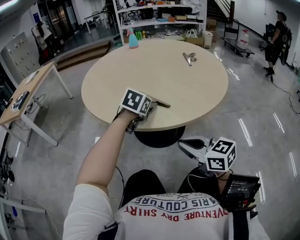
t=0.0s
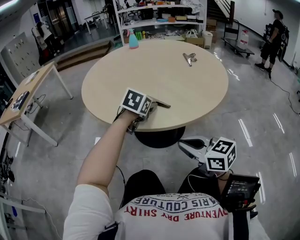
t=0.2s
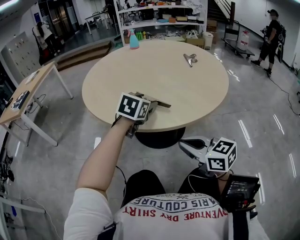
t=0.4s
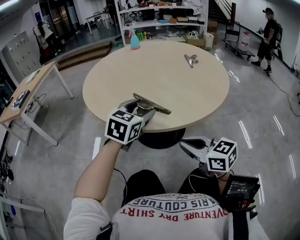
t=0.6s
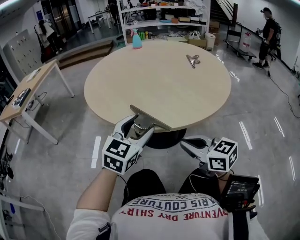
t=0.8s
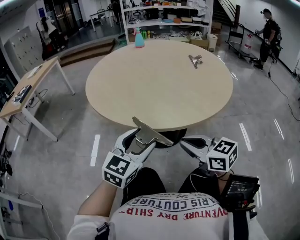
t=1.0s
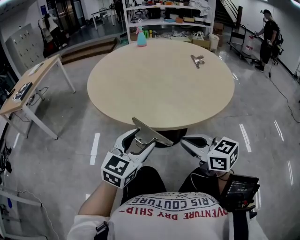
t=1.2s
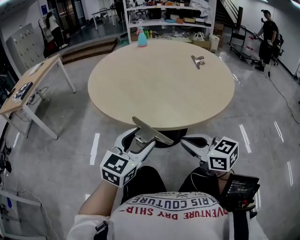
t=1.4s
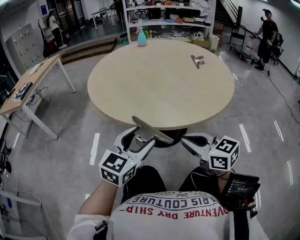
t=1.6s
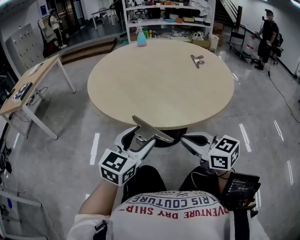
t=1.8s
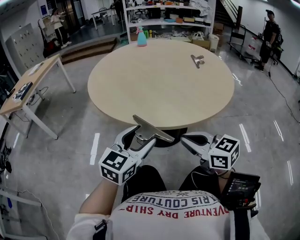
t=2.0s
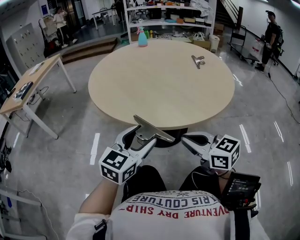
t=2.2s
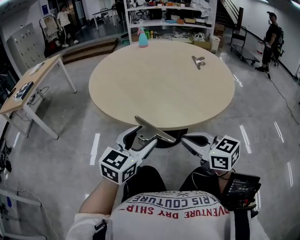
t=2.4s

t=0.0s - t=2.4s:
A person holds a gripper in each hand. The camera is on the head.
t=0.0s - t=1.2s: The left gripper is displaced backward by about 20 cm, and turns by some 30 degrees.
t=1.2s - t=2.4s: The grippers move only a little.

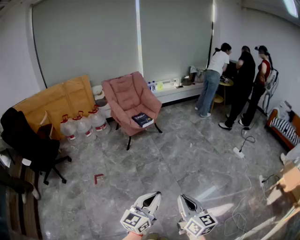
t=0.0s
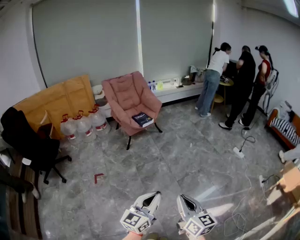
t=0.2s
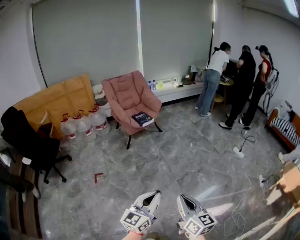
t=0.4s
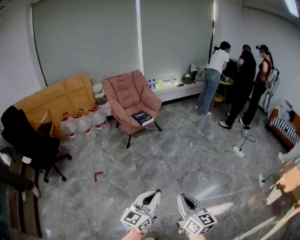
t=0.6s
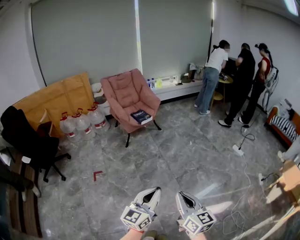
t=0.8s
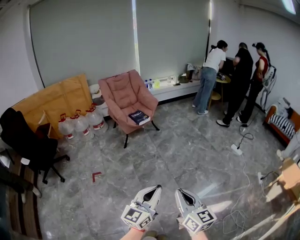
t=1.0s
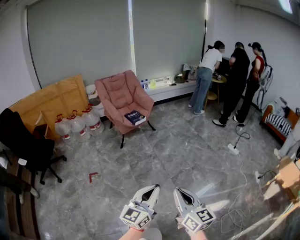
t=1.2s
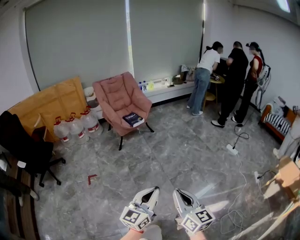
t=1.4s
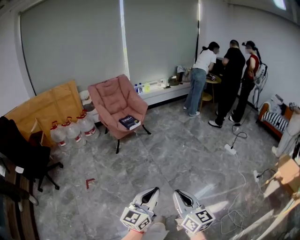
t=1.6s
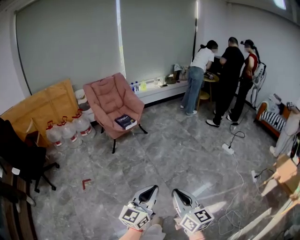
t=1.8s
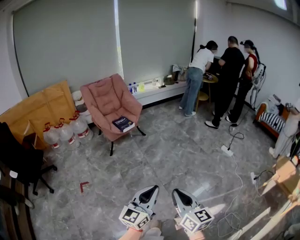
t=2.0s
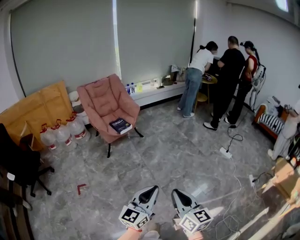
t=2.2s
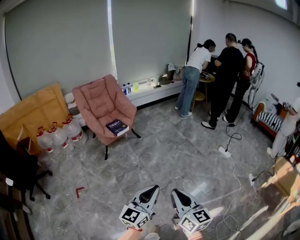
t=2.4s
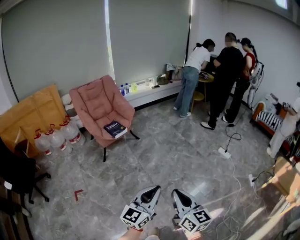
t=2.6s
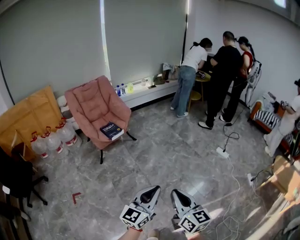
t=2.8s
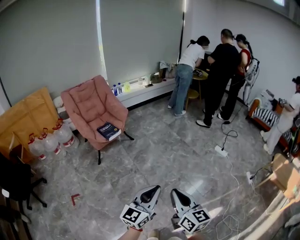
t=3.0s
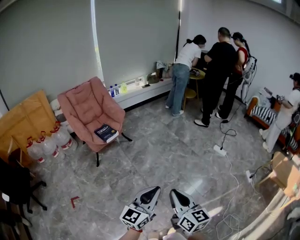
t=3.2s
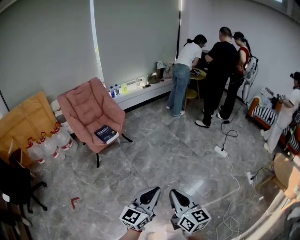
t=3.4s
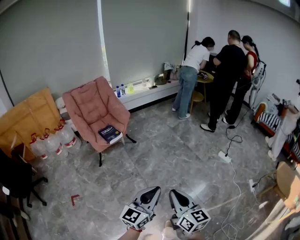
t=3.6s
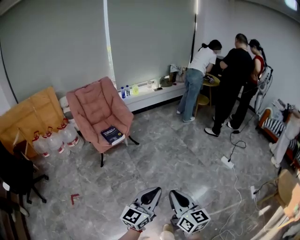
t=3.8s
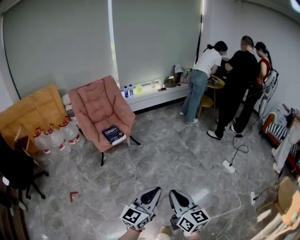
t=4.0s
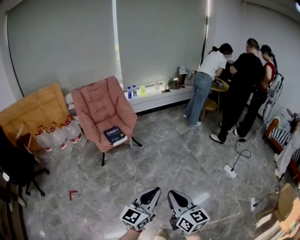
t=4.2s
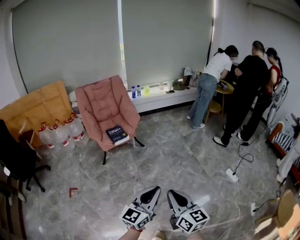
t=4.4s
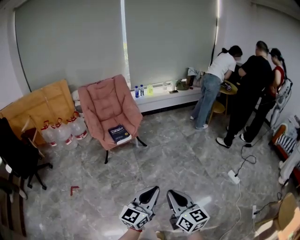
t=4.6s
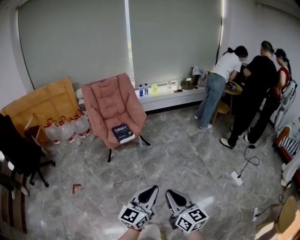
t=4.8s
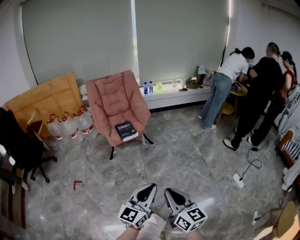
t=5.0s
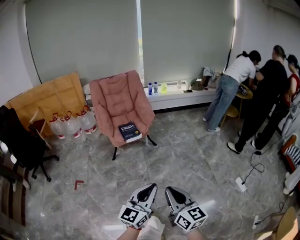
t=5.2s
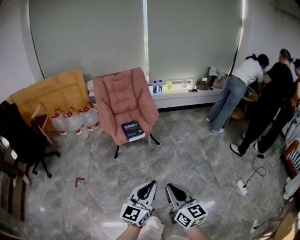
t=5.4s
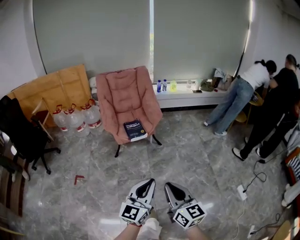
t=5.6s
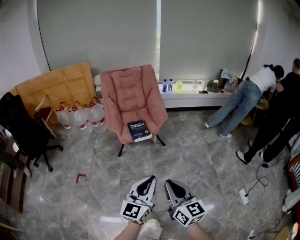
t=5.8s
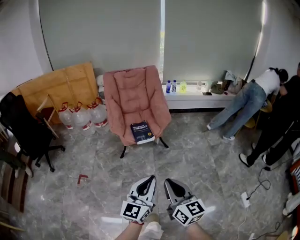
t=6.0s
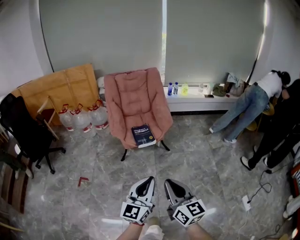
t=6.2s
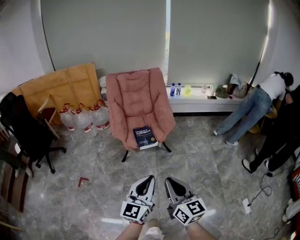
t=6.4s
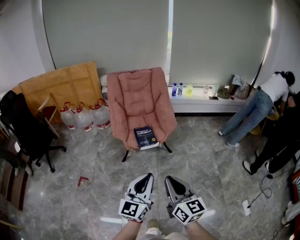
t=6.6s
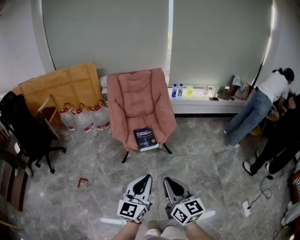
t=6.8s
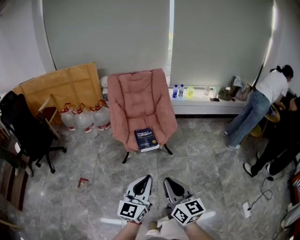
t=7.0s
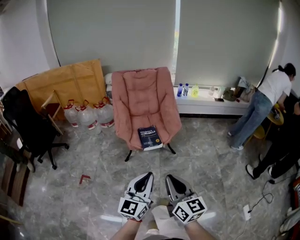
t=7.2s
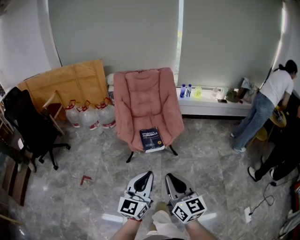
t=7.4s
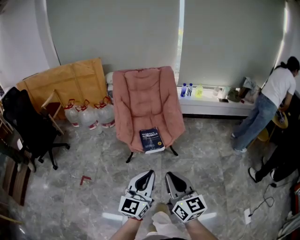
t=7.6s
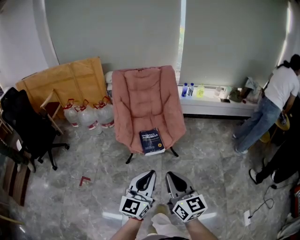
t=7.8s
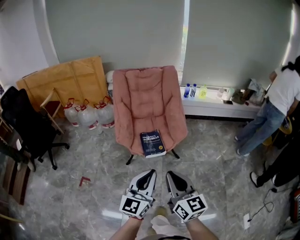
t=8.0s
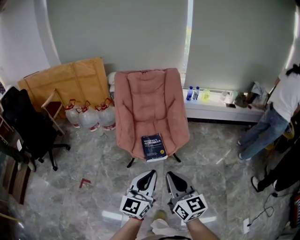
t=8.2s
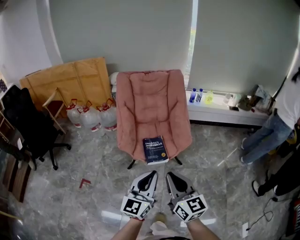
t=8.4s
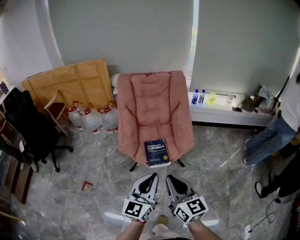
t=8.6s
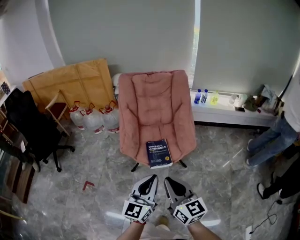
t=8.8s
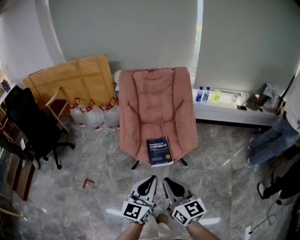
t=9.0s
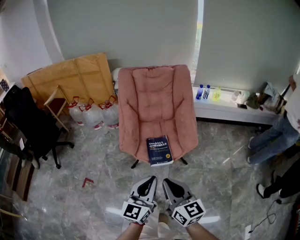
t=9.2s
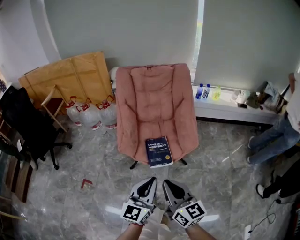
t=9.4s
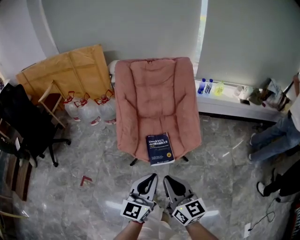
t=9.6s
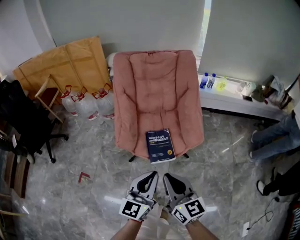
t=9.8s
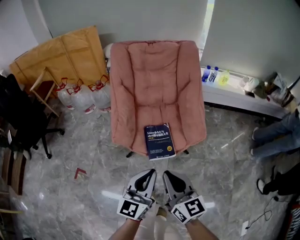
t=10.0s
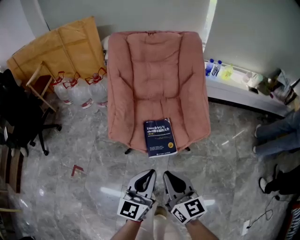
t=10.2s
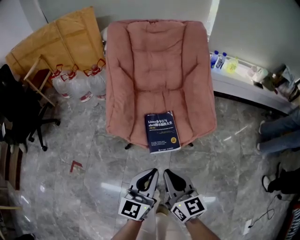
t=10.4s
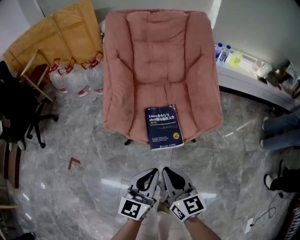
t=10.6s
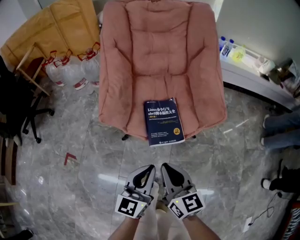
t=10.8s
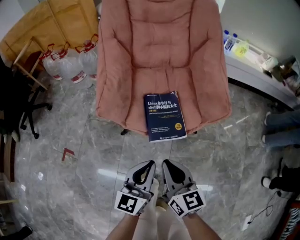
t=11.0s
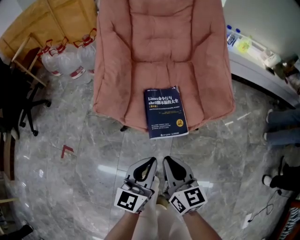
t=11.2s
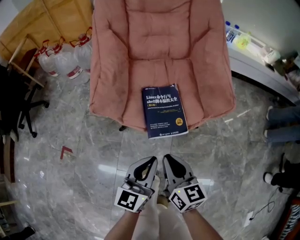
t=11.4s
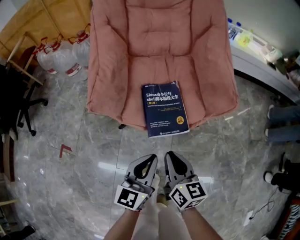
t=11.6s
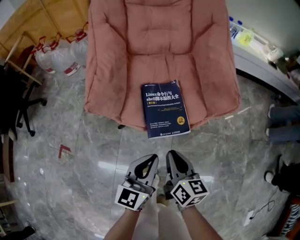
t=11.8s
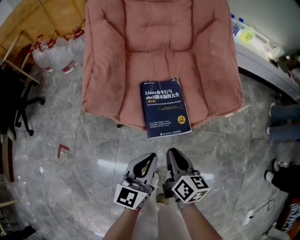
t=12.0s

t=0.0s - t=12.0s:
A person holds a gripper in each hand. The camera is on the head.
t=0.0s - t=1.6s: The grippers both shift to the right by about 5 cm.
t=1.6s - t=3.0s: The grippers both shift forward by approximately 20 cm.
t=3.0s - t=4.4s: The right gripper heads forward, covering about 15 cm, while the left gripper heads forward and to the right, covering some 15 cm.
t=4.4s - t=6.0s: The two grippers go roughly 20 cm forward and to the left. The left gripper turns by some 30 degrees.
t=6.0s - t=7.6s: The grippers both shift forward by approximately 15 cm.
t=7.6s - t=9.0s: The grippers both shift forward by approximately 15 cm.
t=9.0s - t=10.4s: The grippers both shift downward and forward by roughly 20 cm.
t=10.4s - t=12.0s: The grippers both shift downward by approximately 20 cm. The right gripper rotates about 30 degrees.

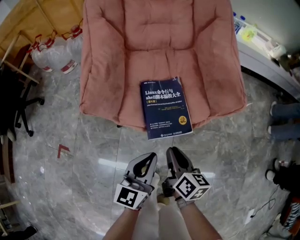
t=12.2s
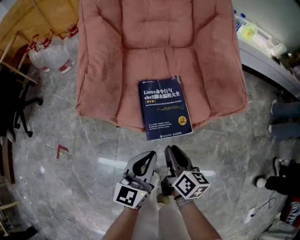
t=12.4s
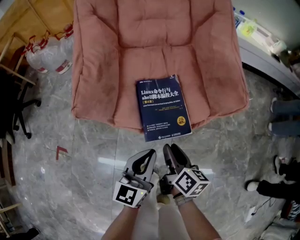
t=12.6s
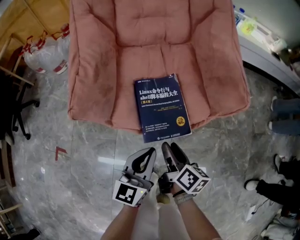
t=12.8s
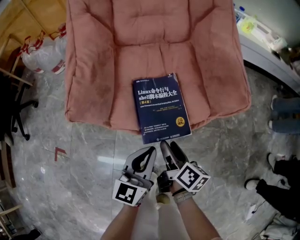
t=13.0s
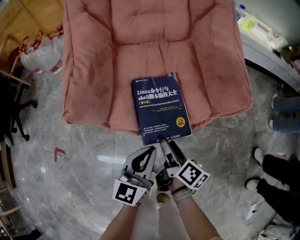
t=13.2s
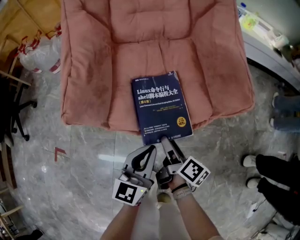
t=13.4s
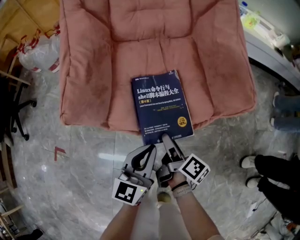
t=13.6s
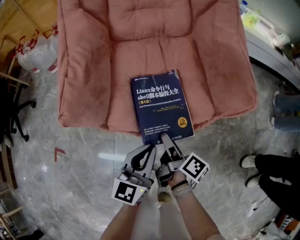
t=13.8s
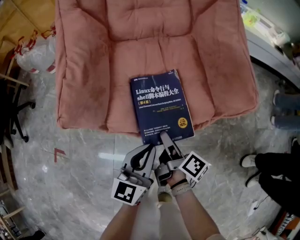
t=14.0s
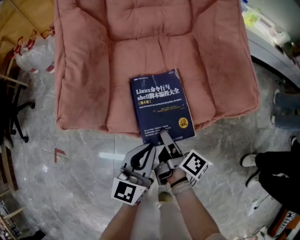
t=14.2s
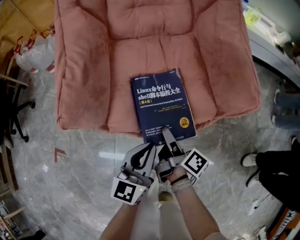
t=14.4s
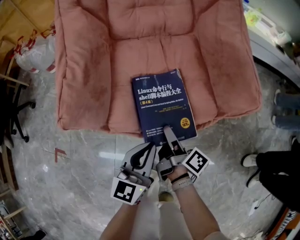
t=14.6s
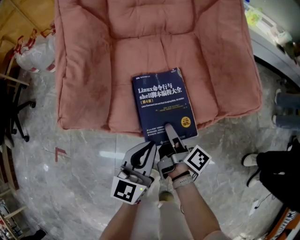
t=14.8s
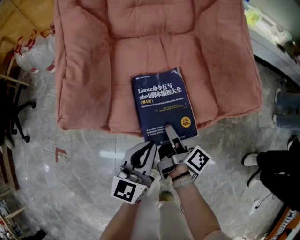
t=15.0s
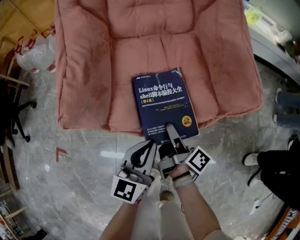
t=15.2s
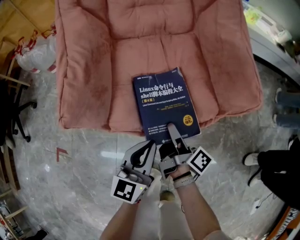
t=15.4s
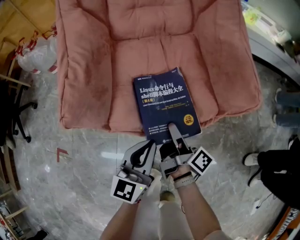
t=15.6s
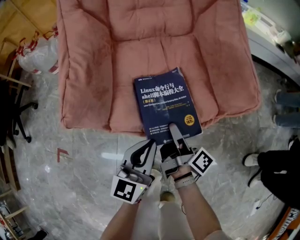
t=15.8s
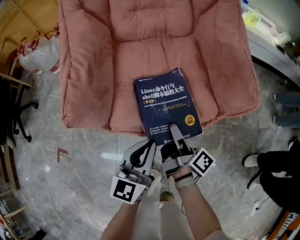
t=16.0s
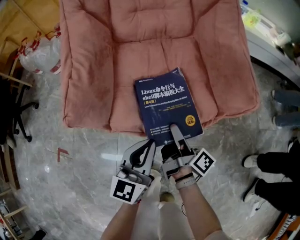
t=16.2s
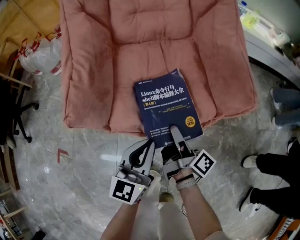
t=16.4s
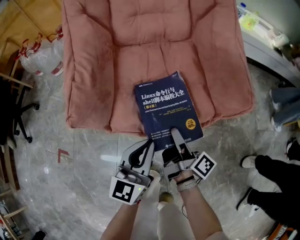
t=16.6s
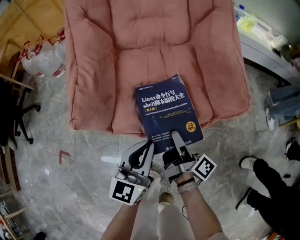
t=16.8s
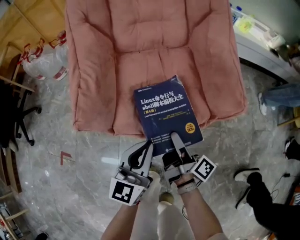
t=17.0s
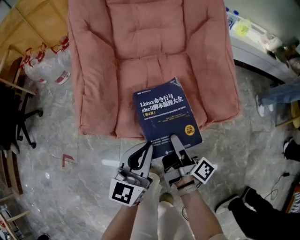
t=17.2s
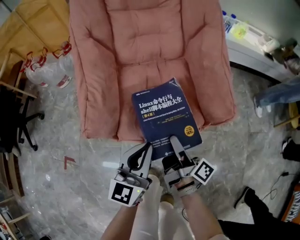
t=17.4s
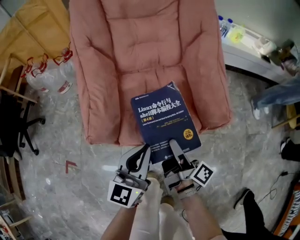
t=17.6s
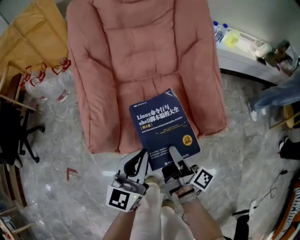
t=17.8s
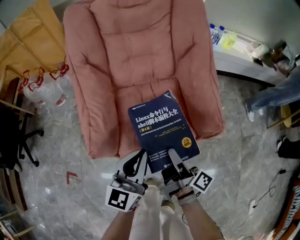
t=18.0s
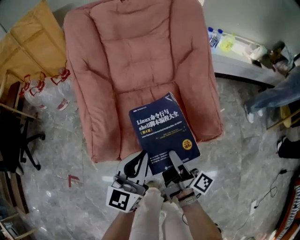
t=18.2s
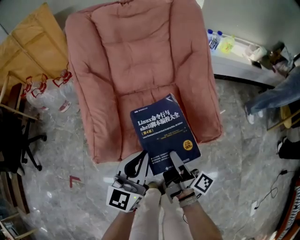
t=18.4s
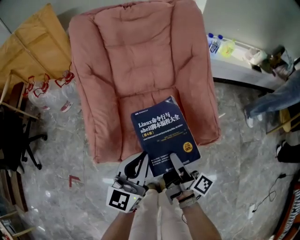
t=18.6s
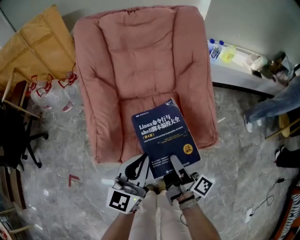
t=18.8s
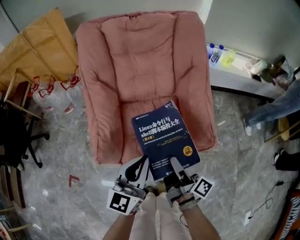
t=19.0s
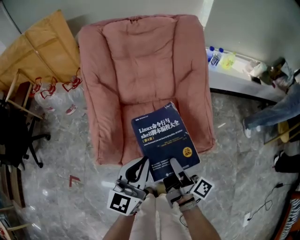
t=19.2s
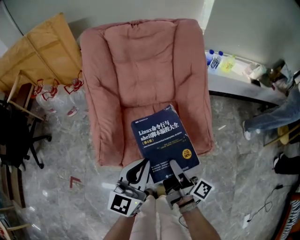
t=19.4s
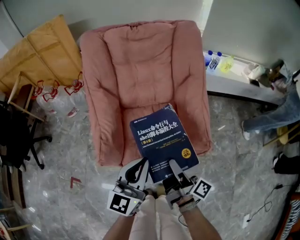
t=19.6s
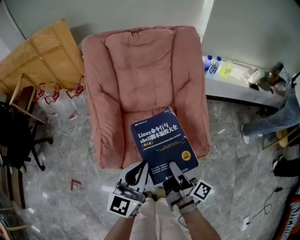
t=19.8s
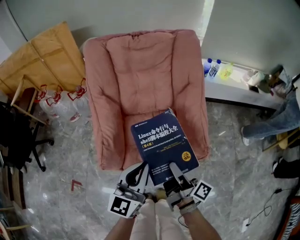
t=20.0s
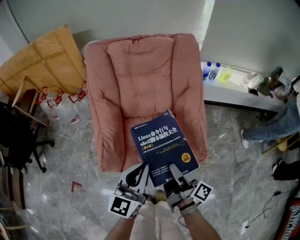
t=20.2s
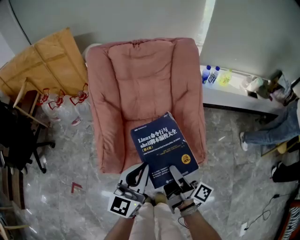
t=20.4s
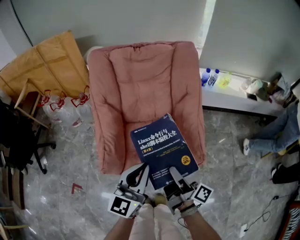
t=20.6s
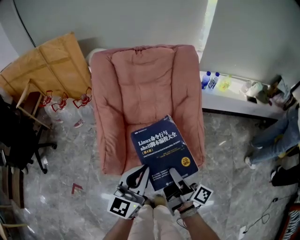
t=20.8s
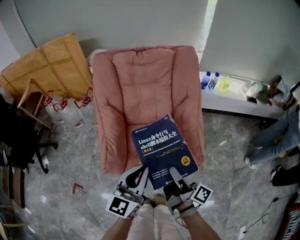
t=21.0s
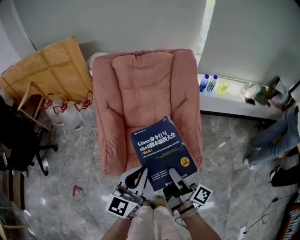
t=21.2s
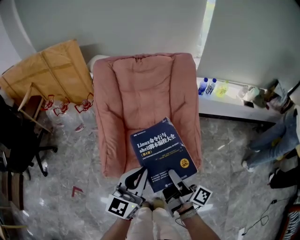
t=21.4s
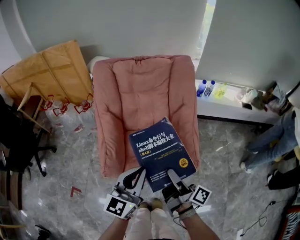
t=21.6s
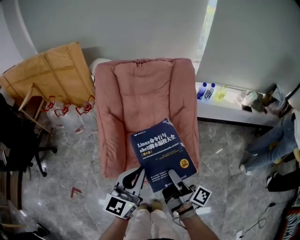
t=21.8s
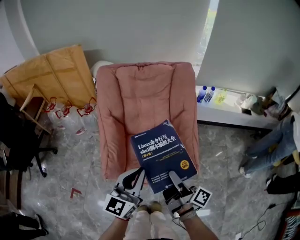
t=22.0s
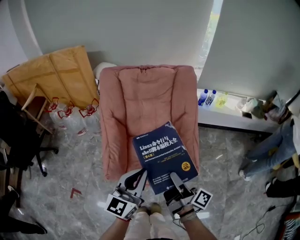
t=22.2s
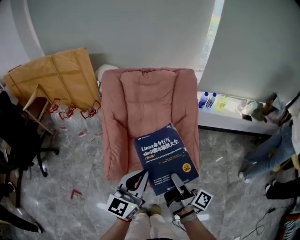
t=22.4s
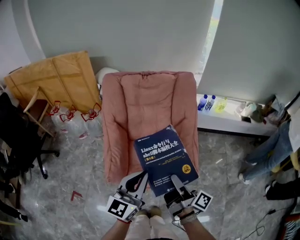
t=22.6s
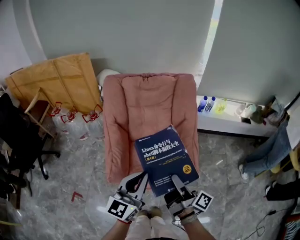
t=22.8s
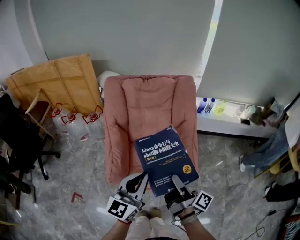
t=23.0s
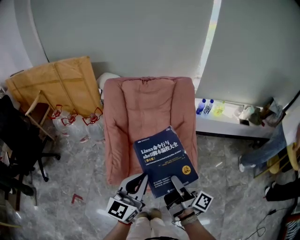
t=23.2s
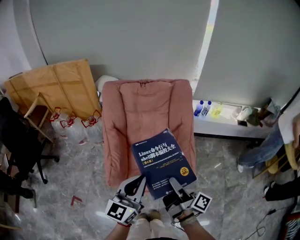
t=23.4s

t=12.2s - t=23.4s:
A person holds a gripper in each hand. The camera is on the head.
t=12.2s - t=13.8s: The left gripper moves forward, roughly 5 cm. The right gripper shifts about 10 cm downward and forward, changes its angle by some 40 degrees, and opens its fingers.
t=13.8s - t=15.4s: The right gripper closes.
t=15.4s - t=17.0s: Both grippers move upward, some 5 cm.
t=17.0s - t=18.6s: The left gripper goes some 15 cm upward and forward. The right gripper is displaced upward by some 15 cm.
t=18.6s - t=20.2s: The two grippers go approximately 10 cm upward.
t=20.2s - t=21.8s: The grippers both shift upward by some 5 cm.
t=21.8s - t=23.4s: The left gripper ends up approximately 5 cm from where it was. Meanwhile the right gripper shifts approximately 5 cm upward.
